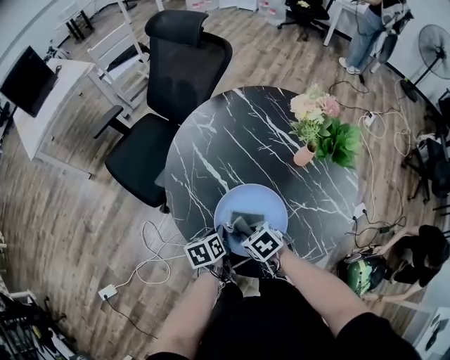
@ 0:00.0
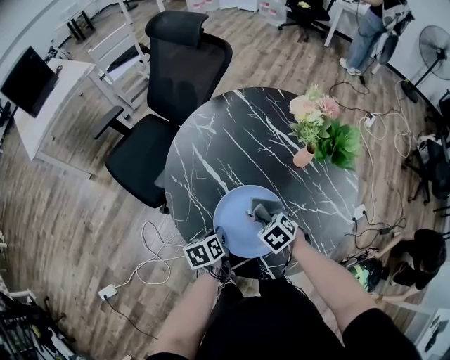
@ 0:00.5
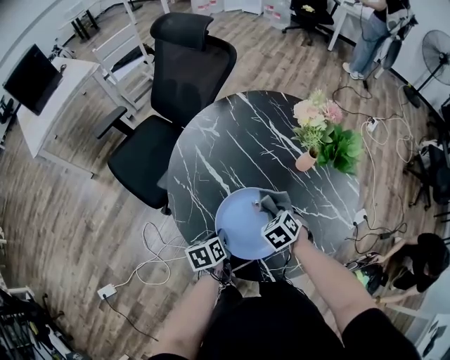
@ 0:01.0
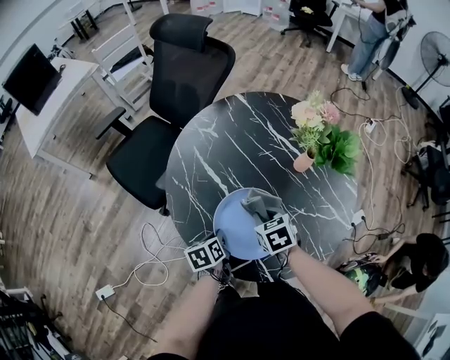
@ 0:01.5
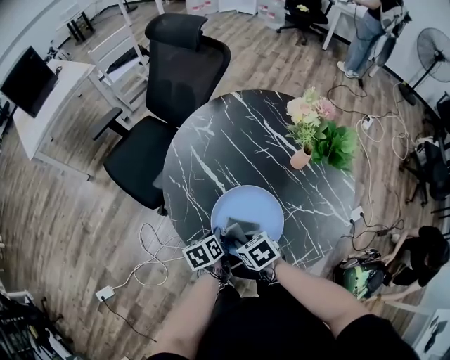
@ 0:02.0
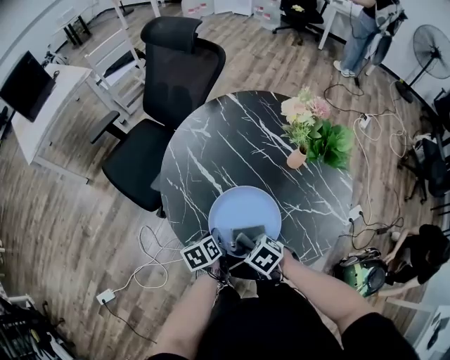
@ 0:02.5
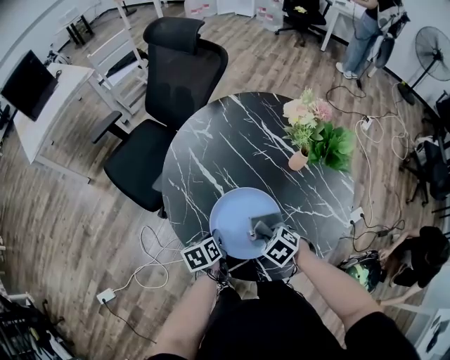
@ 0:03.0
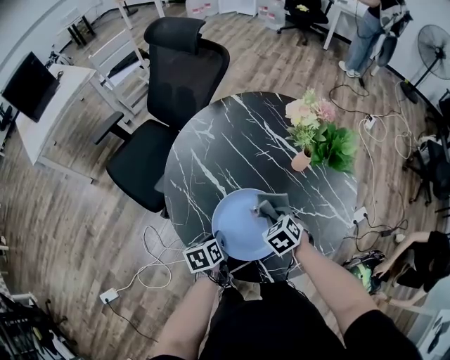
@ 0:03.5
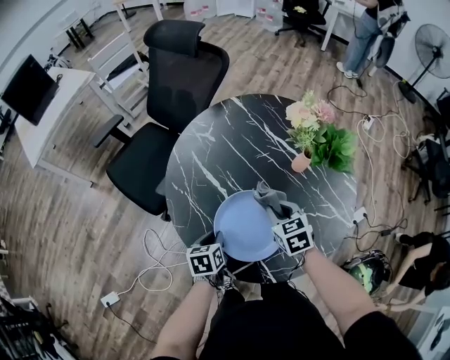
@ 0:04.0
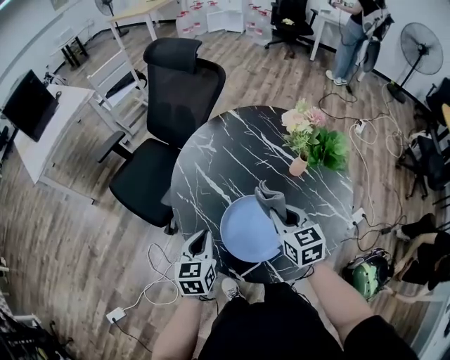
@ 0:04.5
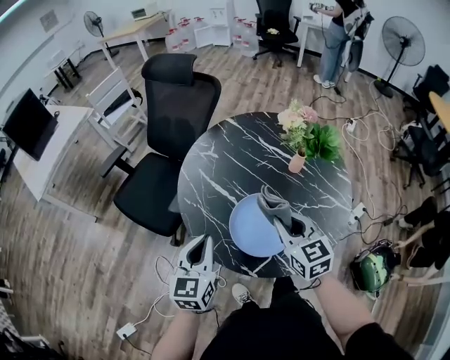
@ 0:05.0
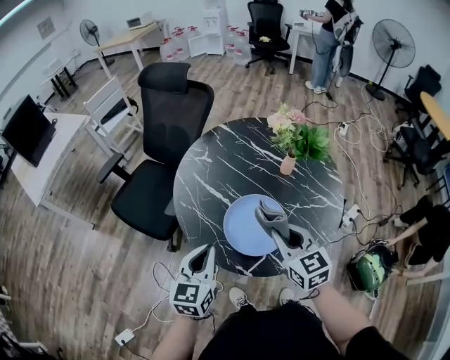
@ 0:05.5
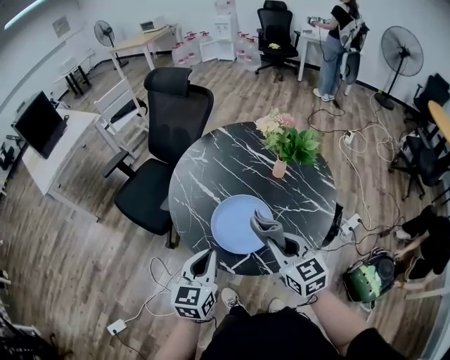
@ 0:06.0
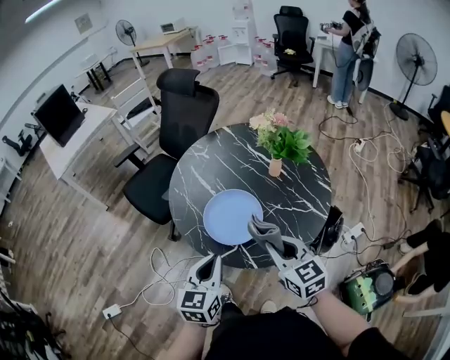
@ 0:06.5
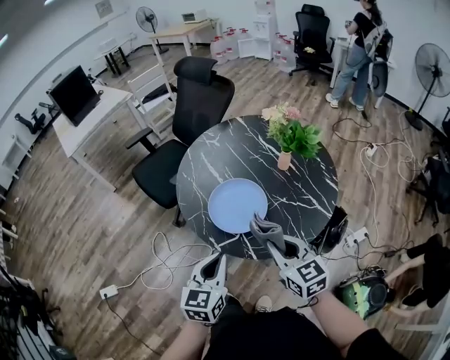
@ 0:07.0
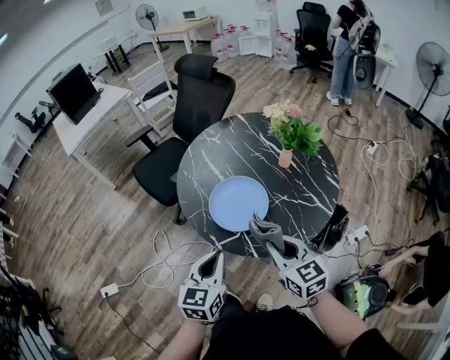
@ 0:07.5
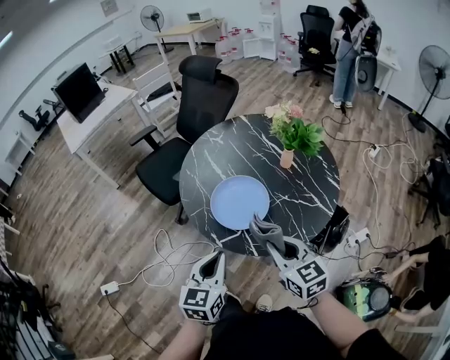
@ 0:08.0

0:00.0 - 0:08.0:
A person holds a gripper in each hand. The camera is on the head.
0:02.0 - 0:04.0: The right gripper moves roughly 15 cm, and swivels some 30 degrees.
0:04.0 - 0:06.0: The right gripper shifts roughly 25 cm backward and upward, and swivels roughly 20 degrees; the left gripper heads upward and backward, covering approximately 25 cm, and points its fingers approximately 30 degrees further upward.
0:06.0 - 0:08.0: The right gripper shifts approximately 10 cm backward. The left gripper is displaced backward and to the right by roughly 15 cm.

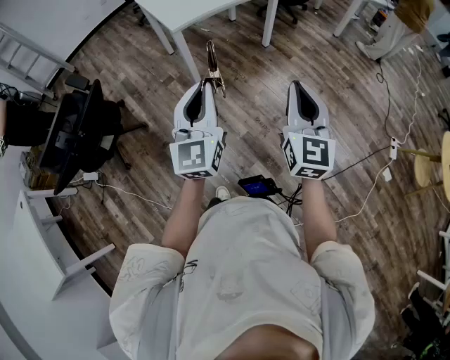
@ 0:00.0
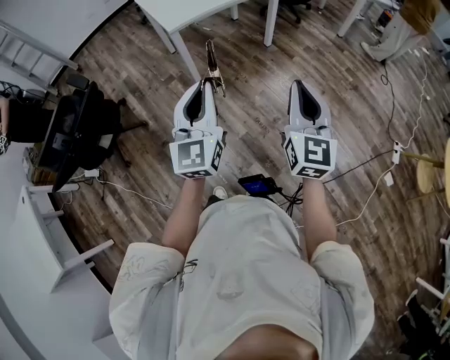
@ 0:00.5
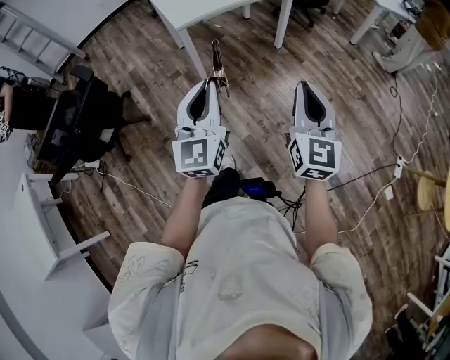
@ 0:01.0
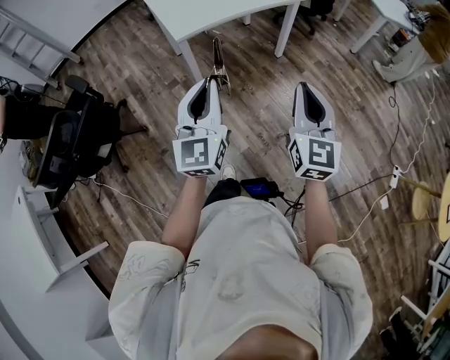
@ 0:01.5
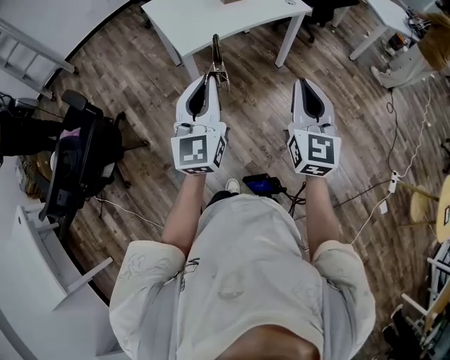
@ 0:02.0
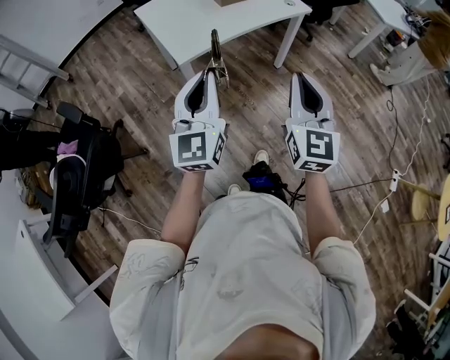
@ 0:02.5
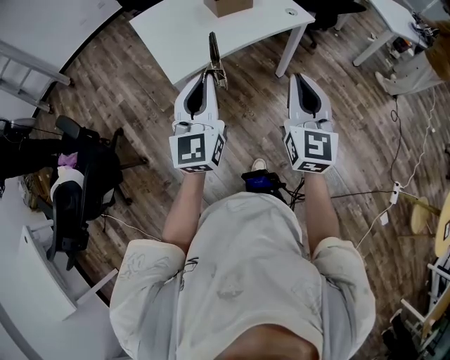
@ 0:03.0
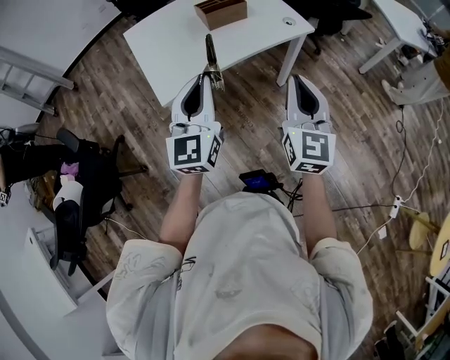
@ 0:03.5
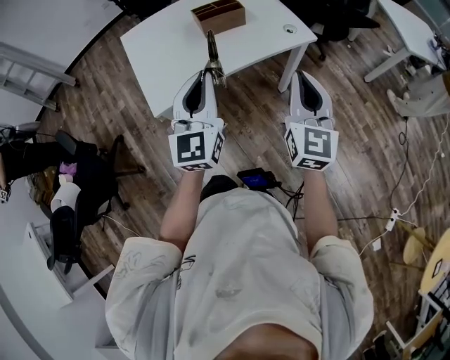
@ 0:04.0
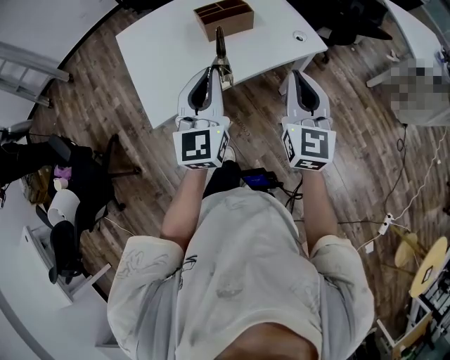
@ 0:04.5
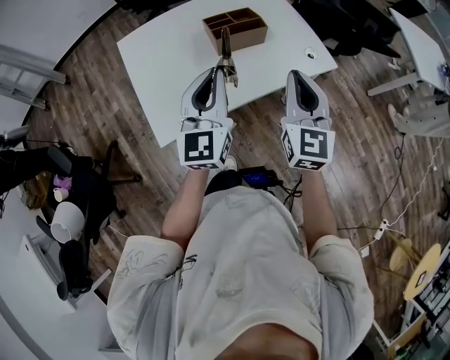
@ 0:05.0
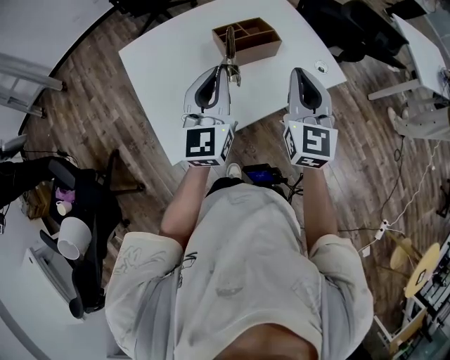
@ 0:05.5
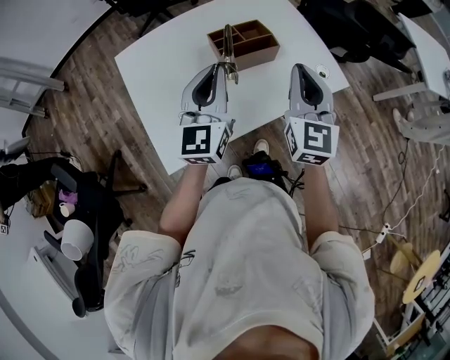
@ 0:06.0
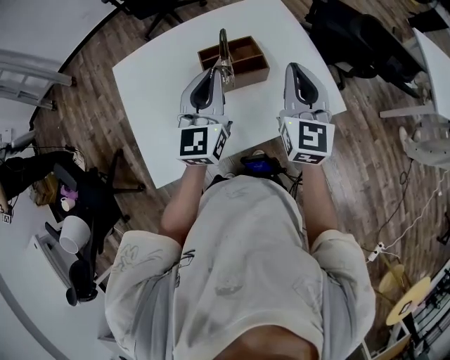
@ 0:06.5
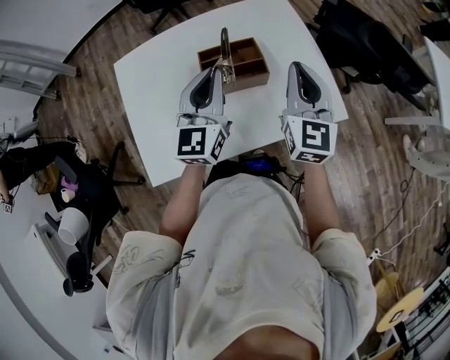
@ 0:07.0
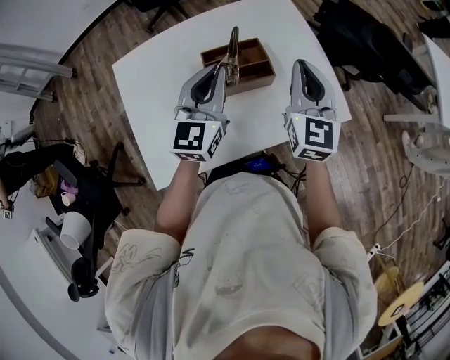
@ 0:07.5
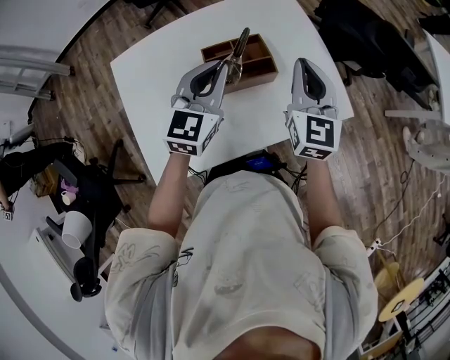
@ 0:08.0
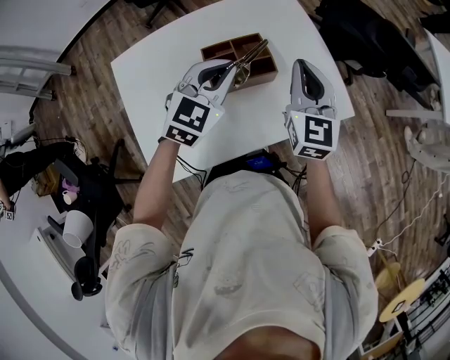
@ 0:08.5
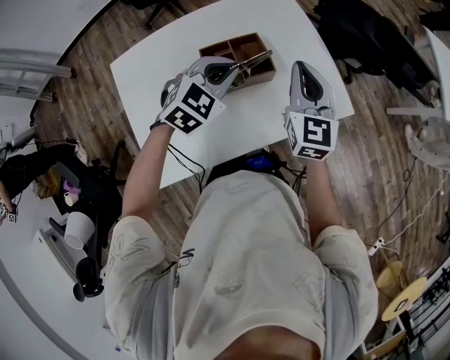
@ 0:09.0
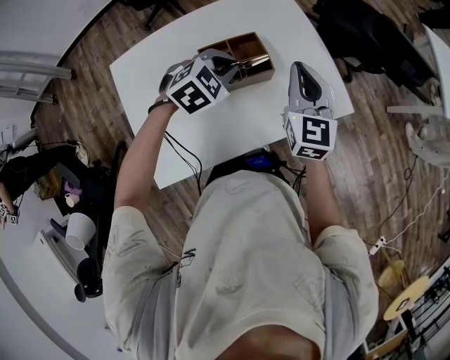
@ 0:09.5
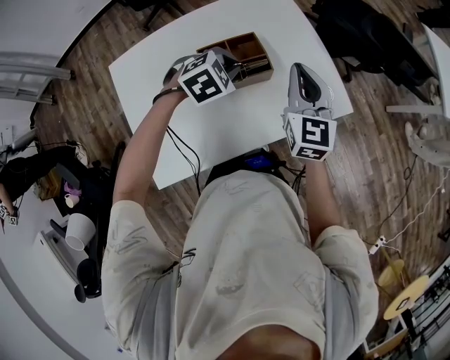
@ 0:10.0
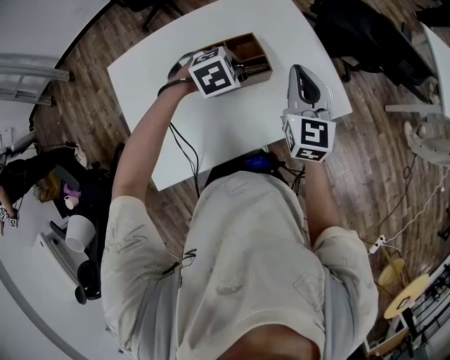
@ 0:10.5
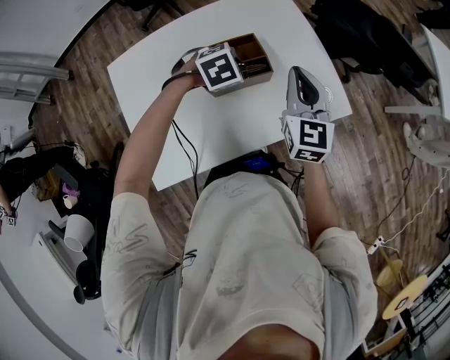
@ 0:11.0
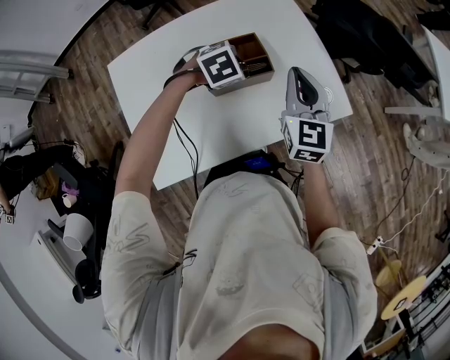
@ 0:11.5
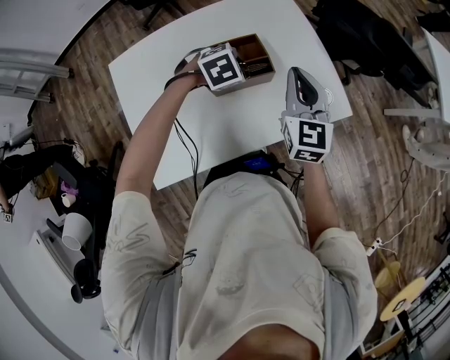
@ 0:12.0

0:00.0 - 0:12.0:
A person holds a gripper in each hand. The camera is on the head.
0:00.0 - 0:02.0: Both grippers are carried forward, about 50 cm.
0:02.0 - 0:04.0: The two grippers travel together, forward and to the right, some 80 cm.
0:04.0 - 0:06.0: Both grippers are carried forward, about 70 cm.
0:06.0 - 0:08.0: Both grippers travel together forward, approximately 35 cm.
0:08.0 - 0:10.0: The left gripper goes some 10 cm downward, and angles its fingers downward, by about 50 degrees.
0:10.0 - 0:12.0: The grippers stay close to where they were, moving slightly.

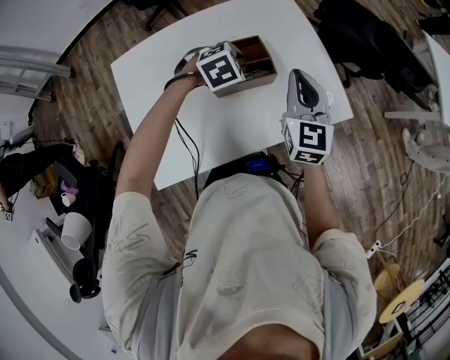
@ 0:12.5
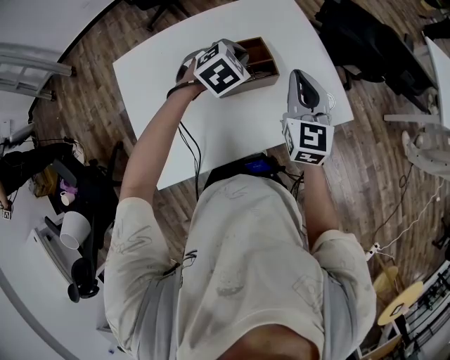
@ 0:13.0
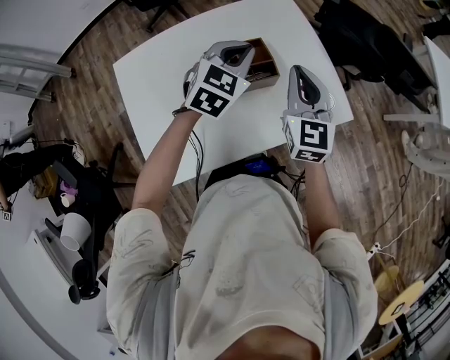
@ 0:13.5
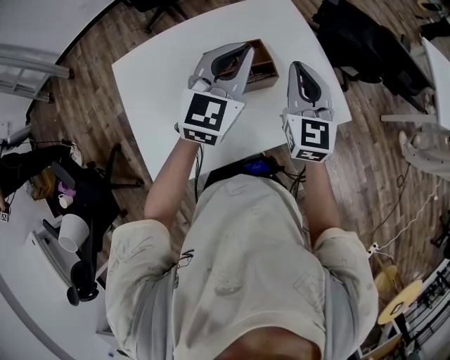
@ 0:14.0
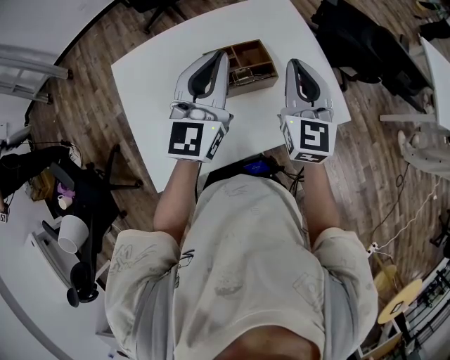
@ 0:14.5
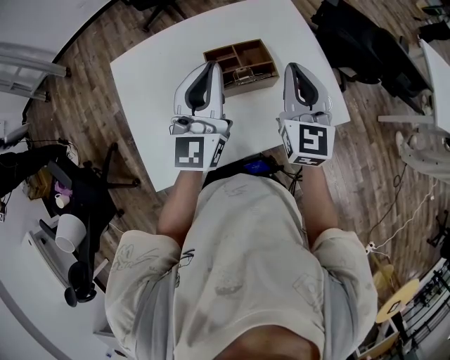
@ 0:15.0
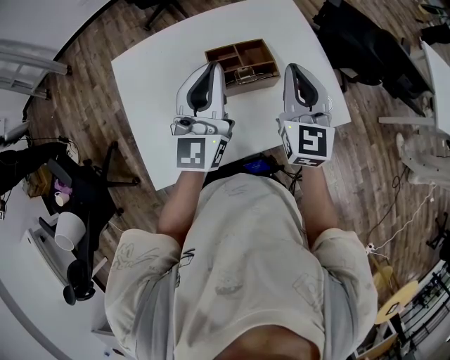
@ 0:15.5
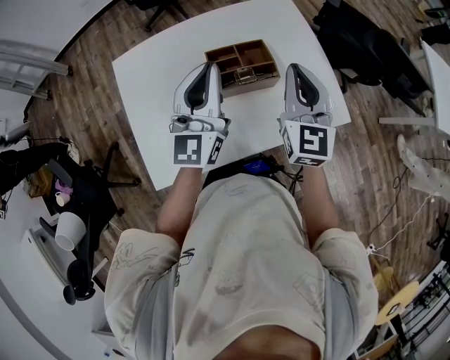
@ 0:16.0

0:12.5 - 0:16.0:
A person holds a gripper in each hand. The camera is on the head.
0:12.5 - 0:14.5: The right gripper shifts approximately 5 cm upward; the left gripper is displaced upward by about 20 cm, tips its fingers upward by about 70 degrees, and closes.
0:14.5 - 0:16.0: The grippers move only a little.

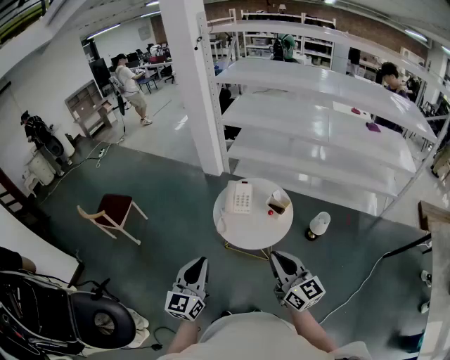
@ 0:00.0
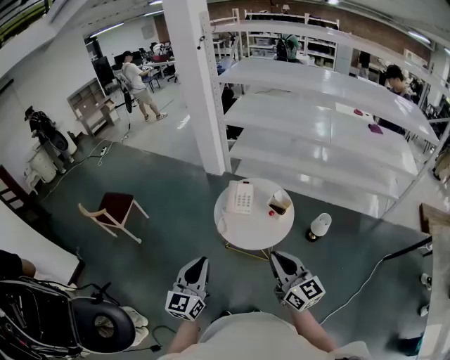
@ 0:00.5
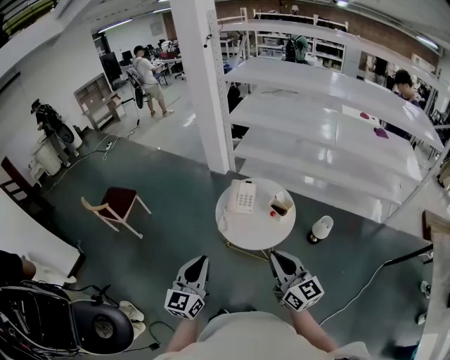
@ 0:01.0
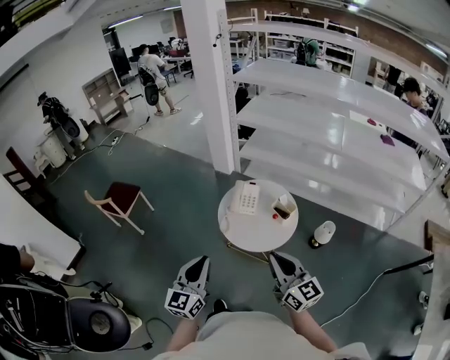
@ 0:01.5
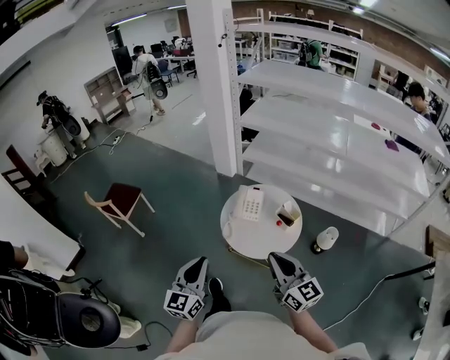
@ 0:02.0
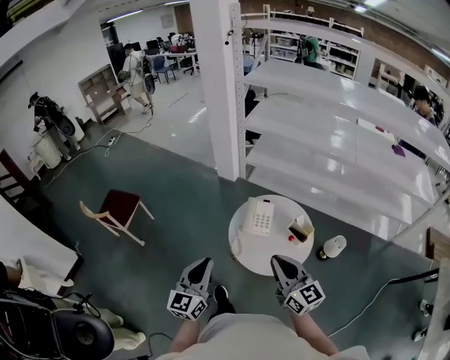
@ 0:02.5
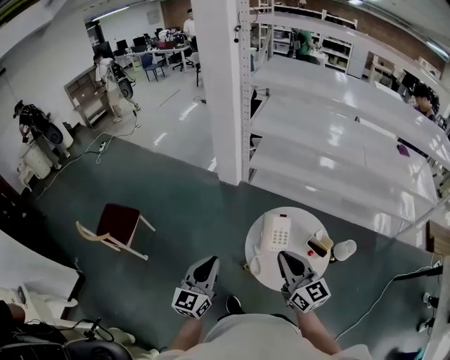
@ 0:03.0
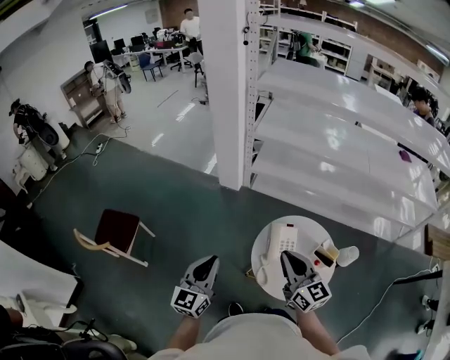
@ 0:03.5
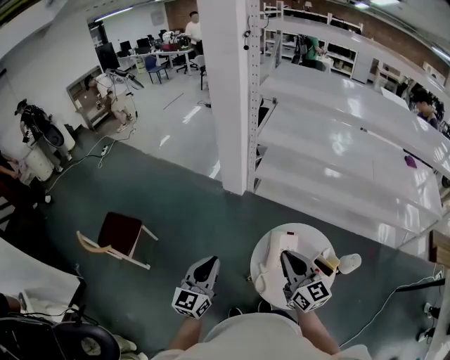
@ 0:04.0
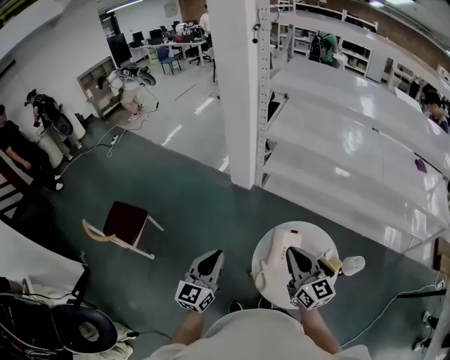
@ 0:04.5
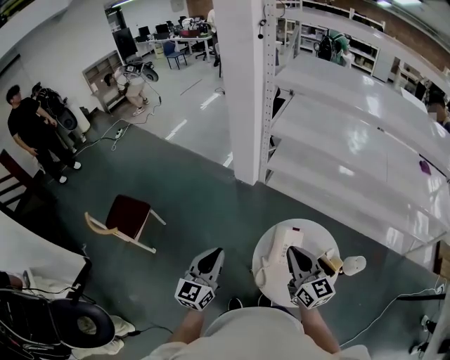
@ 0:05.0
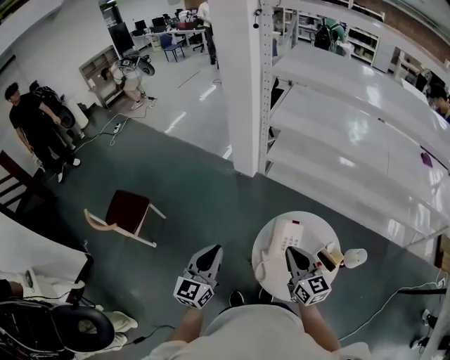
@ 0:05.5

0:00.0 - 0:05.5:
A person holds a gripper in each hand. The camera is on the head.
0:00.0 - 0:02.0: The right gripper heads forward, covering some 5 cm.
0:02.0 - 0:03.5: Both grippers travel together forward and to the left, some 35 cm.
0:03.5 - 0:05.5: The right gripper moves downward and to the right, approximately 10 cm.
